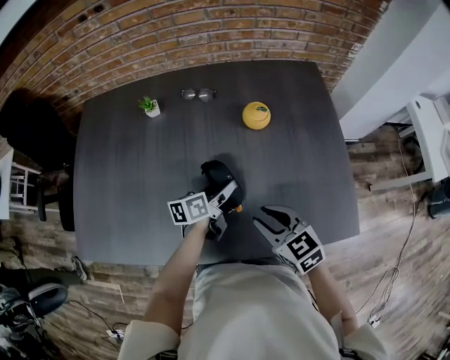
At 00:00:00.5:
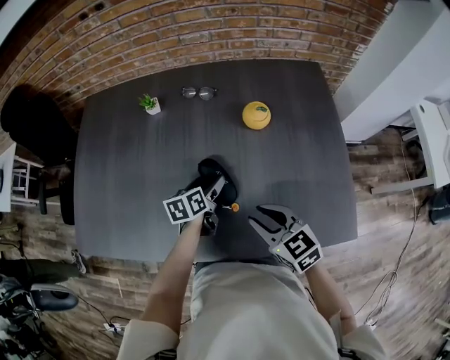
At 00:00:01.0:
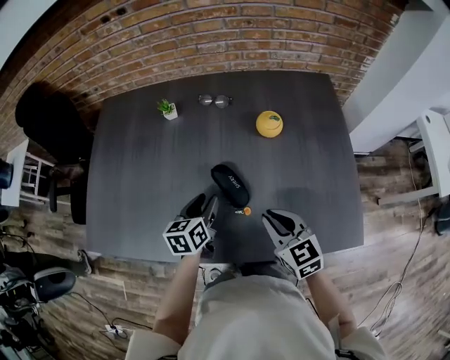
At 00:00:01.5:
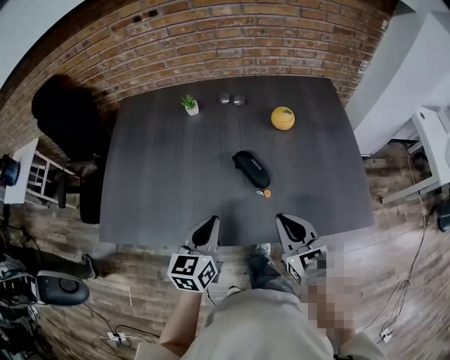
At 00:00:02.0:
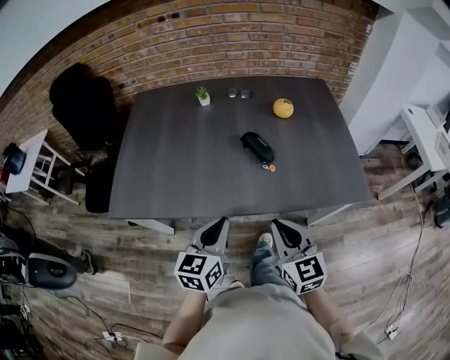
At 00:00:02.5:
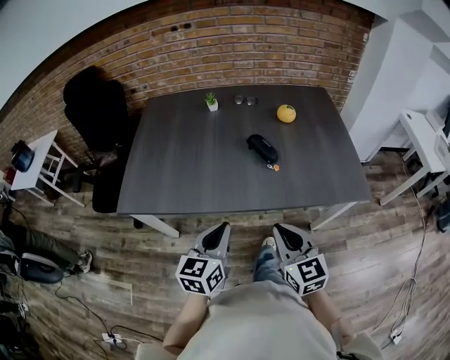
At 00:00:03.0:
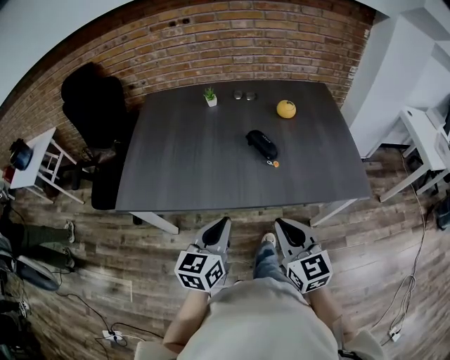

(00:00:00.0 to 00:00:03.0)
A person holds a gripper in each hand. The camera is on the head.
00:00:00.0 - 00:00:01.5: The left gripper heads backward, to the left and upward, covering roughly 25 cm, swivels roughly 40 degrees, and closes; the right gripper moves backward and upward, about 10 cm, and turns by roughly 20 degrees.
00:00:01.5 - 00:00:03.0: Both grippers move backward, about 20 cm.

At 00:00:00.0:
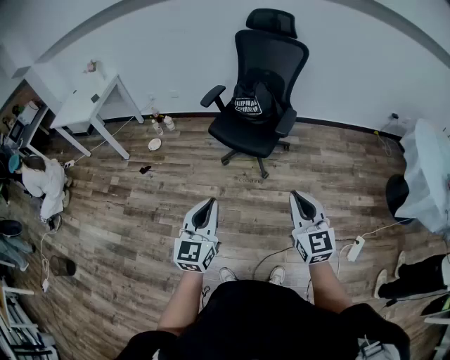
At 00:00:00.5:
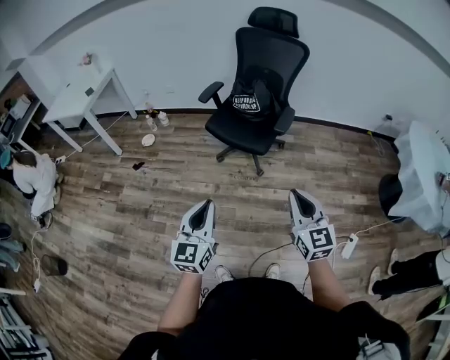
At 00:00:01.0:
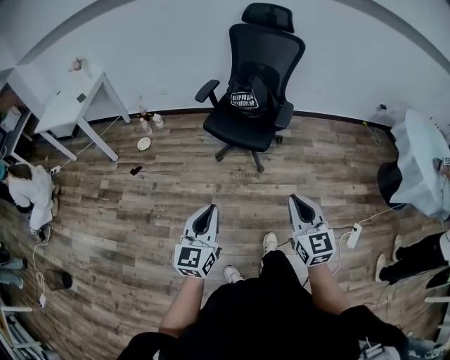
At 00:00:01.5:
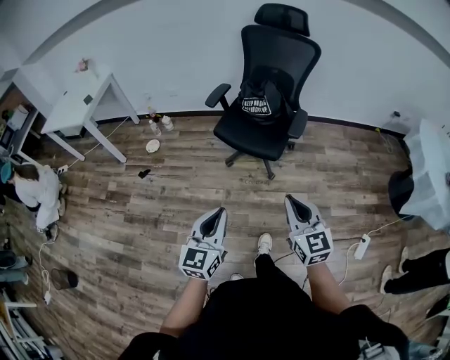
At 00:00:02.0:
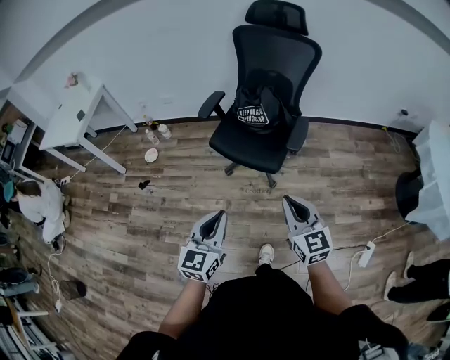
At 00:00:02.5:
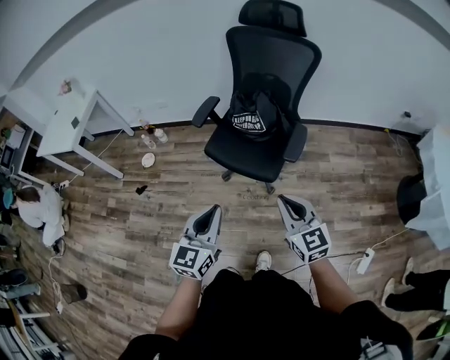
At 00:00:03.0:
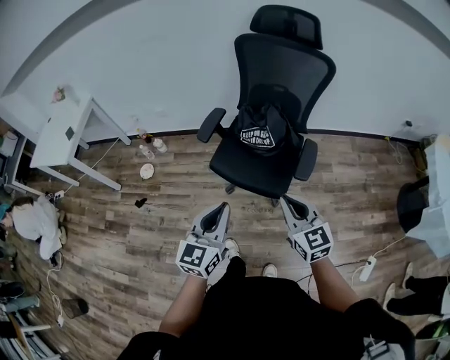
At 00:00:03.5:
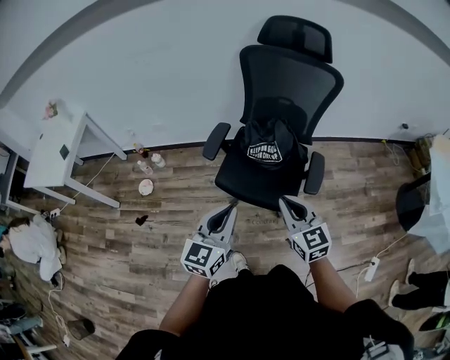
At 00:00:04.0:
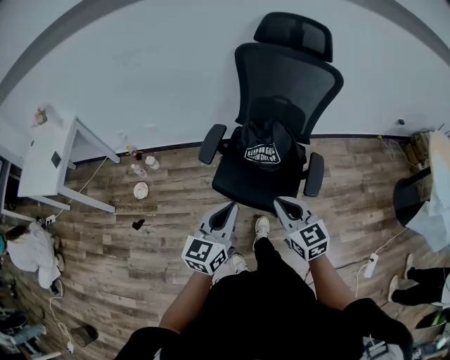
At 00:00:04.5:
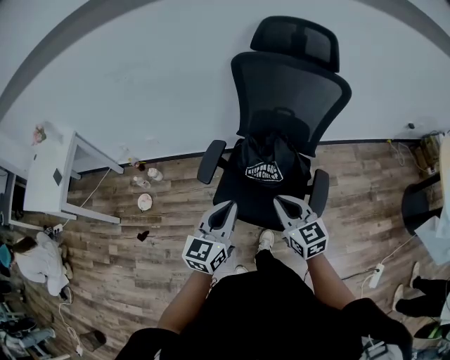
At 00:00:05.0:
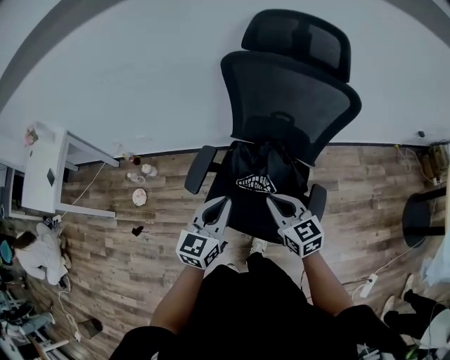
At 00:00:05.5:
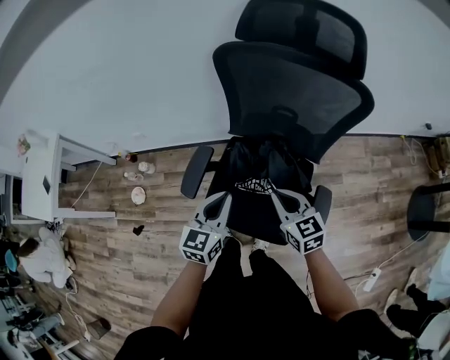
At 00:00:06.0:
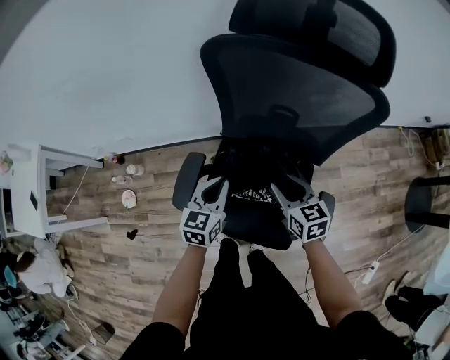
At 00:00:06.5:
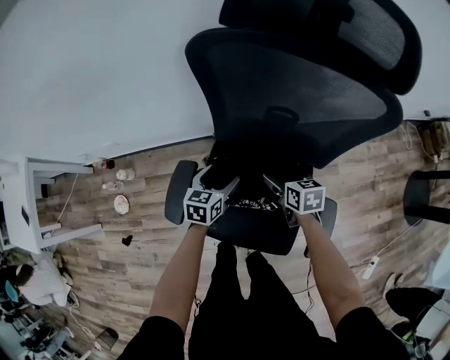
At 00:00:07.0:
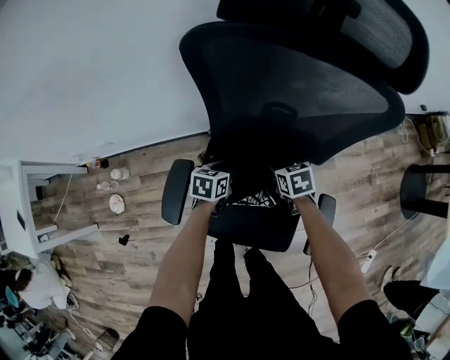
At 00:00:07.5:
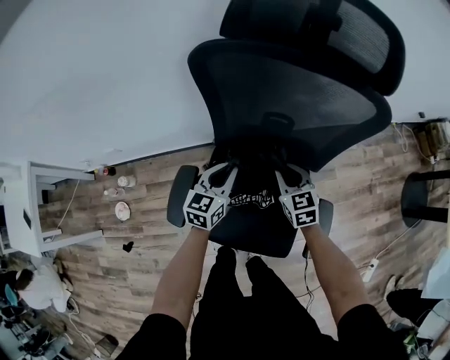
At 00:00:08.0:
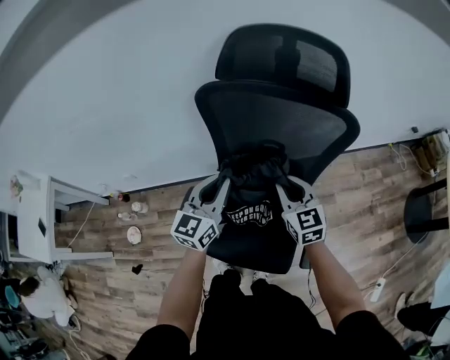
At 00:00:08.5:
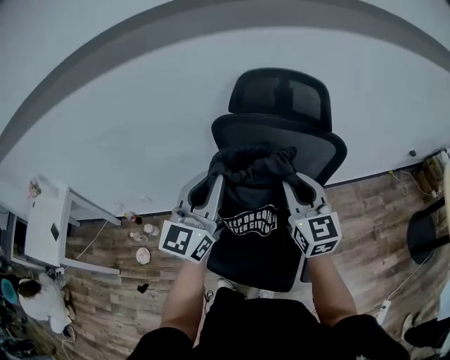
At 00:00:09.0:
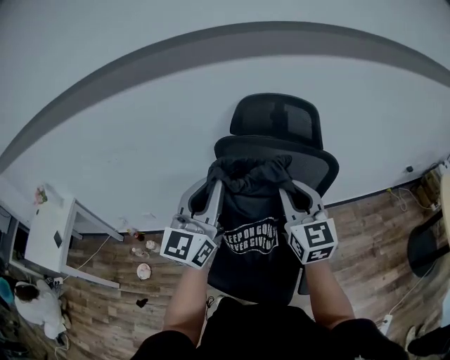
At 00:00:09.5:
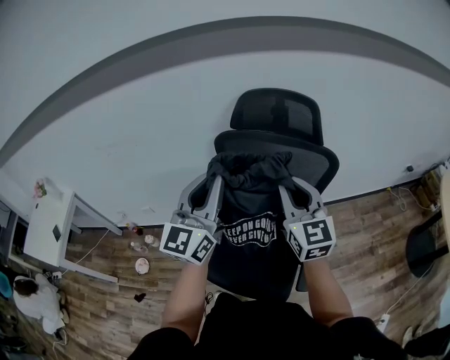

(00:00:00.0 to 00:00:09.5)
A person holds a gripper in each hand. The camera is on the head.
00:00:00.0 - 00:00:02.0: The left gripper moves forward, roughly 15 cm, while the right gripper heads forward and to the left, covering about 20 cm.
00:00:02.0 - 00:00:04.0: The right gripper shifts some 30 cm forward and to the left, while the left gripper is displaced forward by roughly 30 cm.
00:00:04.0 - 00:00:05.5: Both grippers move forward, about 25 cm.
00:00:05.5 - 00:00:07.5: Both grippers move forward and downward, approximately 20 cm. The right gripper opens, then closes again, while the left gripper opens, then closes again.
00:00:07.5 - 00:00:09.5: The grippers both shift upward by approximately 40 cm. The right gripper angles its fingers upward, by about 40 degrees; the left gripper angles its fingers upward, by roughly 40 degrees.

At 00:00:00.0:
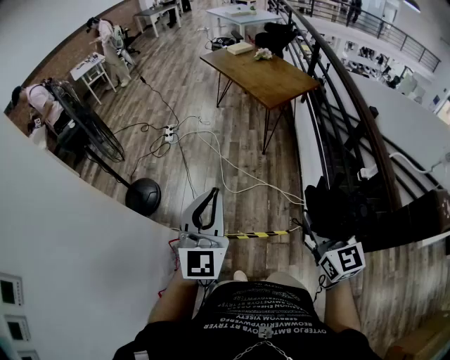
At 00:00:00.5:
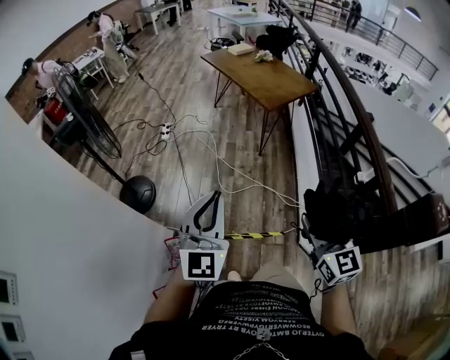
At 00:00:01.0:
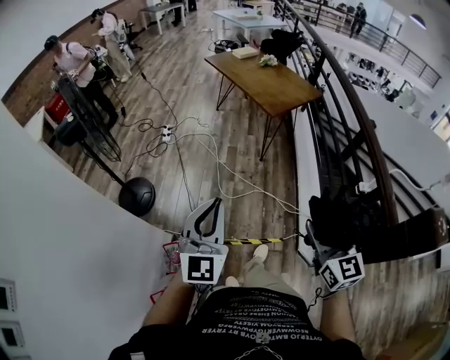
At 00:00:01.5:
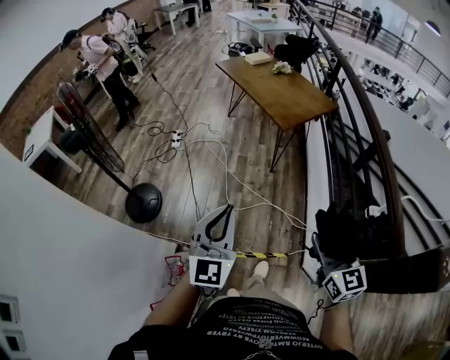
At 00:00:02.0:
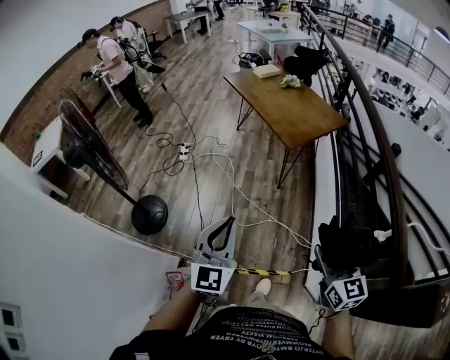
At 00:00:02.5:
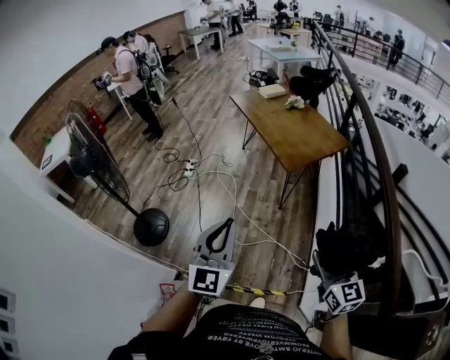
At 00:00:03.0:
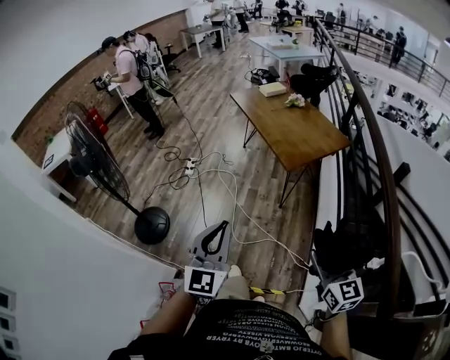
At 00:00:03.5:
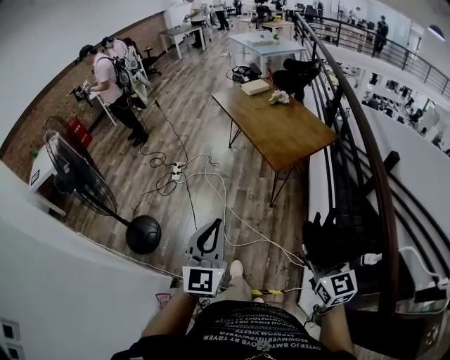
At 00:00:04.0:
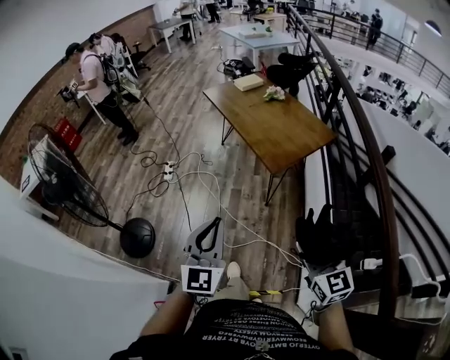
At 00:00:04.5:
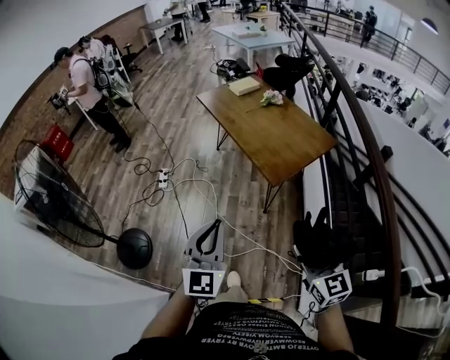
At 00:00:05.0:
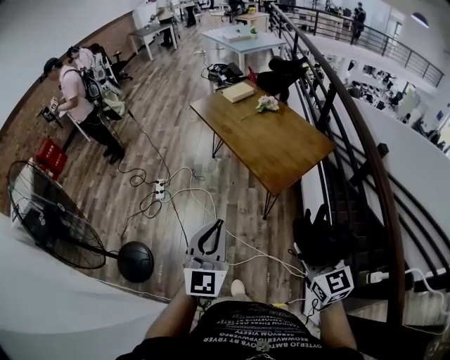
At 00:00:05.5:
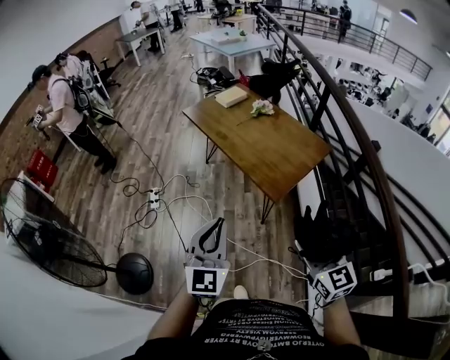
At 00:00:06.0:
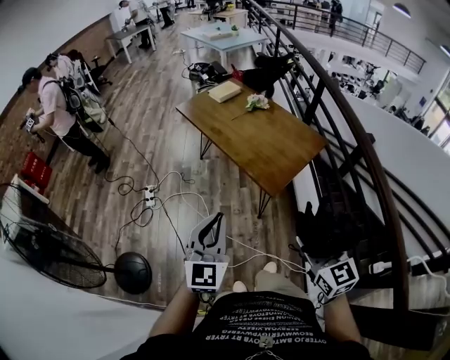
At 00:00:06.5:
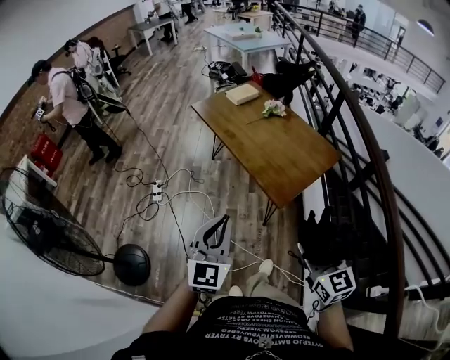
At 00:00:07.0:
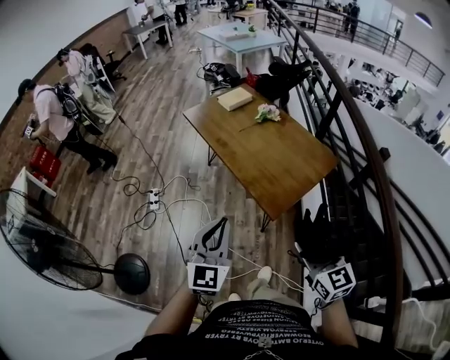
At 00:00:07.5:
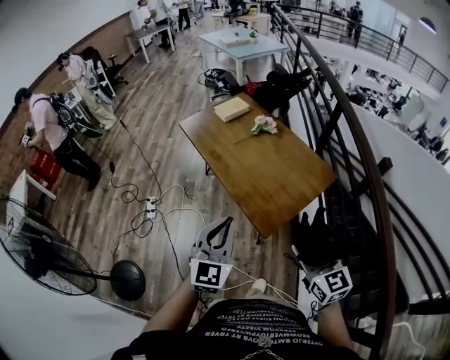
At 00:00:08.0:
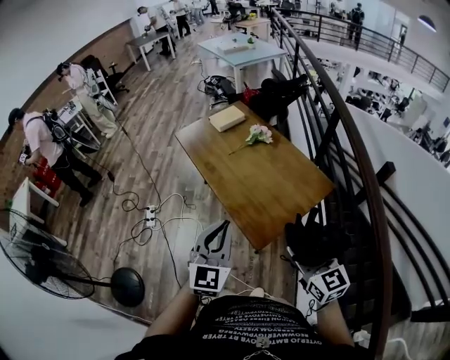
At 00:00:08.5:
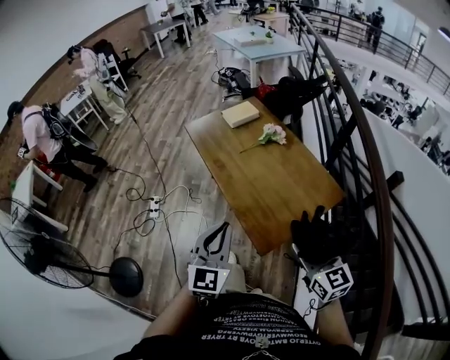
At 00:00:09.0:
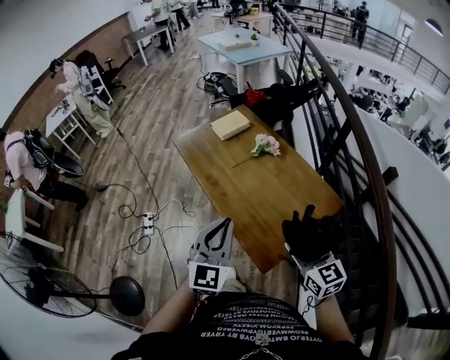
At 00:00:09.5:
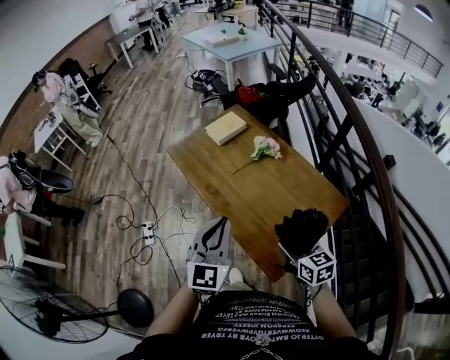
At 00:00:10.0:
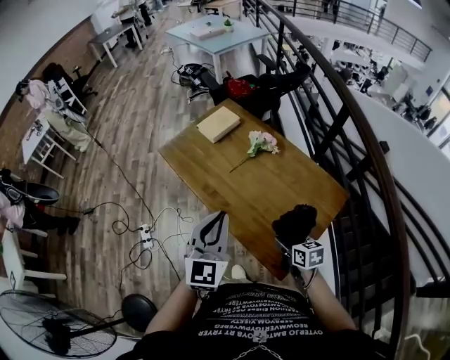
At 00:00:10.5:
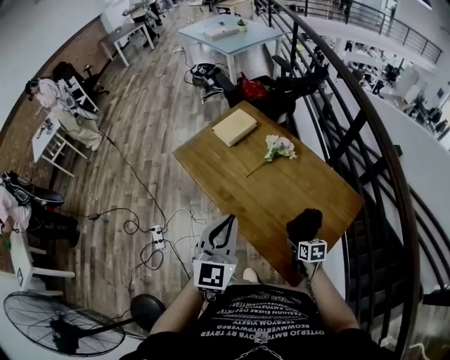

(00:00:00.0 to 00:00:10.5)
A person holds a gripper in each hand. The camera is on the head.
00:00:00.0 - 00:00:02.0: Both grippers travel together forward, roughly 15 cm.
00:00:02.0 - 00:00:04.0: Both grippers travel together forward, some 15 cm.
00:00:04.0 - 00:00:06.5: The two grippers go about 20 cm forward.
00:00:06.5 - 00:00:08.5: Both grippers move forward and to the right, roughly 25 cm.
00:00:08.5 - 00:00:10.5: The left gripper is displaced forward by some 25 cm. The right gripper is displaced downward and forward by roughly 35 cm, and tilts its fingers approximately 40 degrees downward.

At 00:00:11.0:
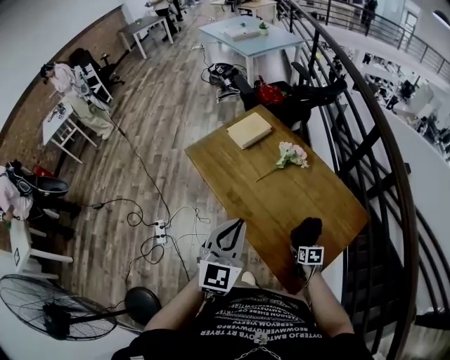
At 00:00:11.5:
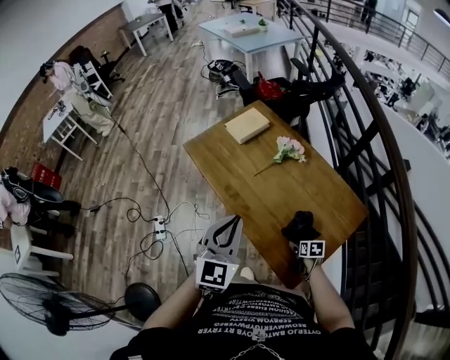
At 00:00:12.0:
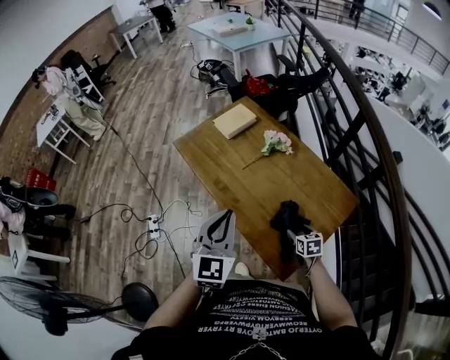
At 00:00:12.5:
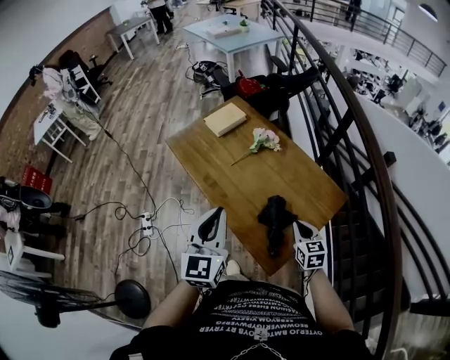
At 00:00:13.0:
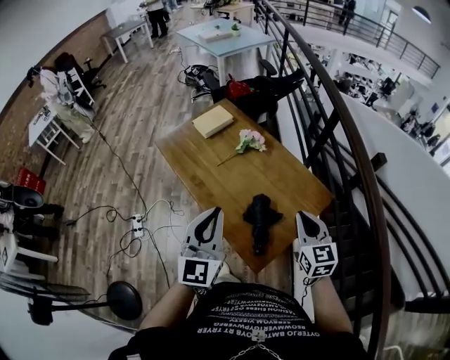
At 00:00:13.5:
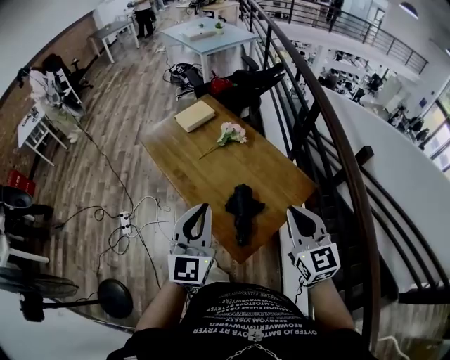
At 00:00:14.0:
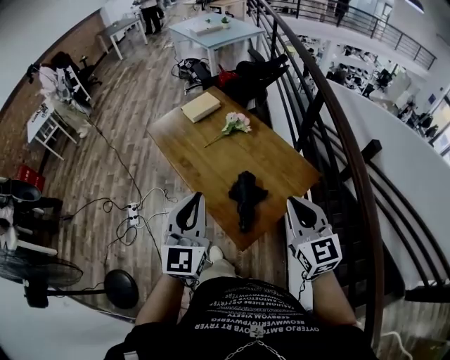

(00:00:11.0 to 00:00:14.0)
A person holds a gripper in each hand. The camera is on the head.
00:00:11.0 - 00:00:12.5: The left gripper travels backward by some 5 cm; the right gripper moves upward, about 20 cm, swivels some 30 degrees, and closes up.
00:00:12.5 - 00:00:14.0: The left gripper is displaced backward and to the right by about 10 cm, while the right gripper travels upward and backward by roughly 25 cm, and rotates some 30 degrees.
